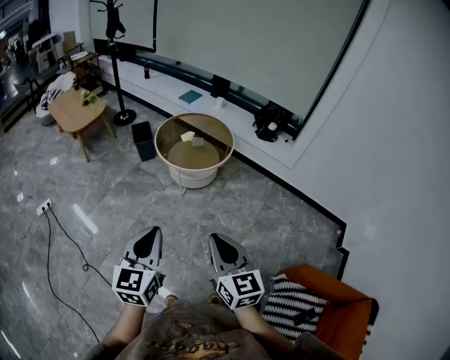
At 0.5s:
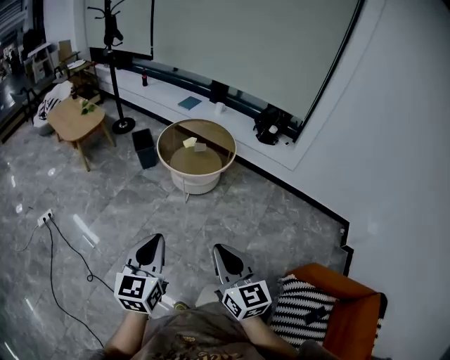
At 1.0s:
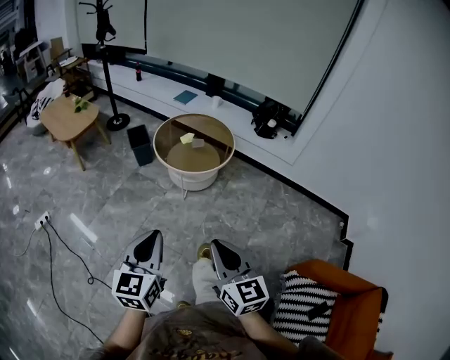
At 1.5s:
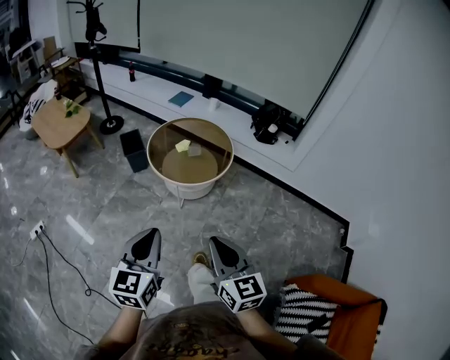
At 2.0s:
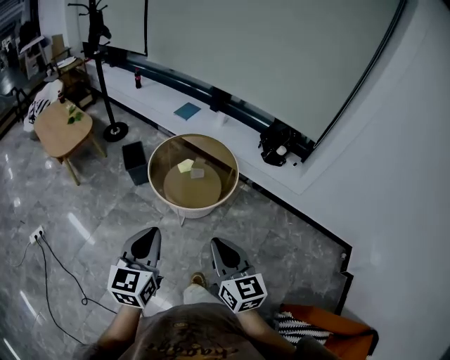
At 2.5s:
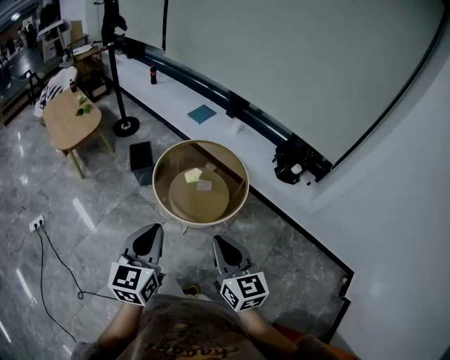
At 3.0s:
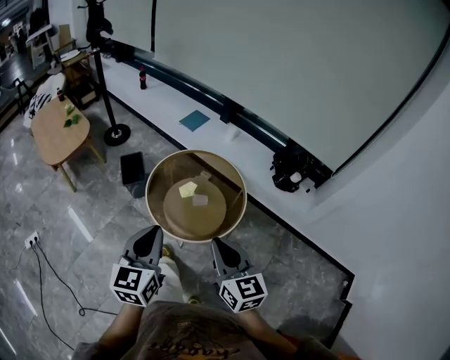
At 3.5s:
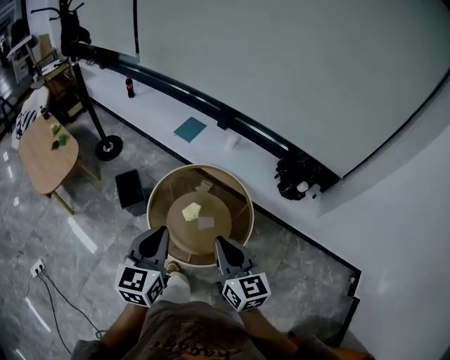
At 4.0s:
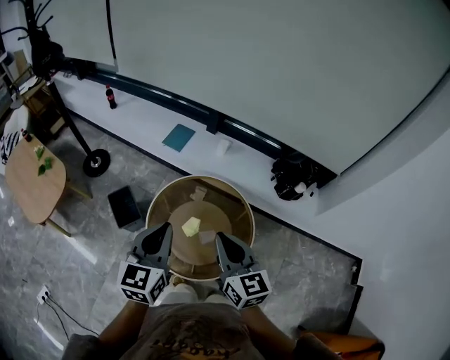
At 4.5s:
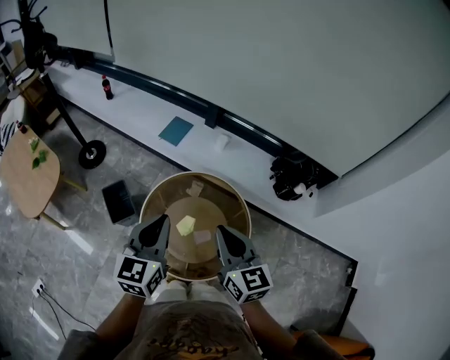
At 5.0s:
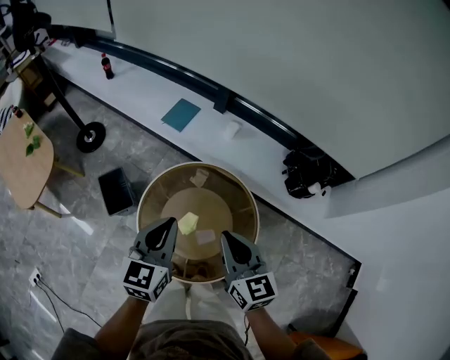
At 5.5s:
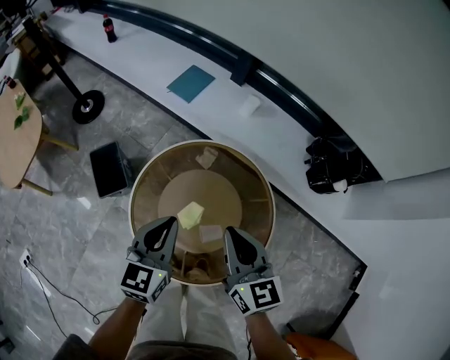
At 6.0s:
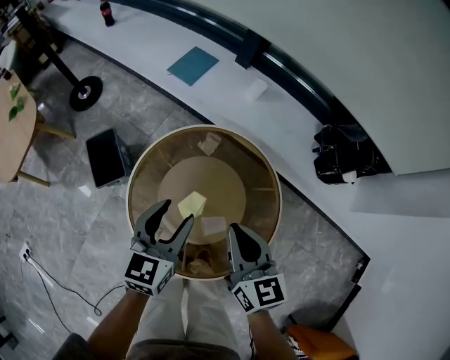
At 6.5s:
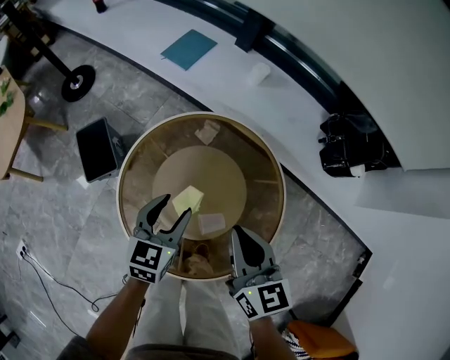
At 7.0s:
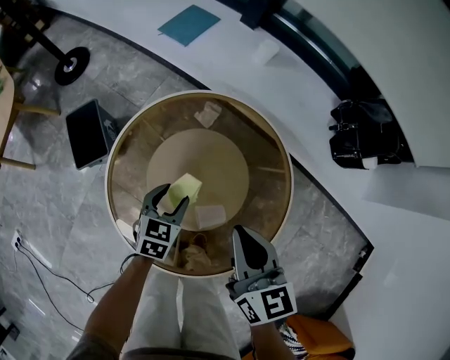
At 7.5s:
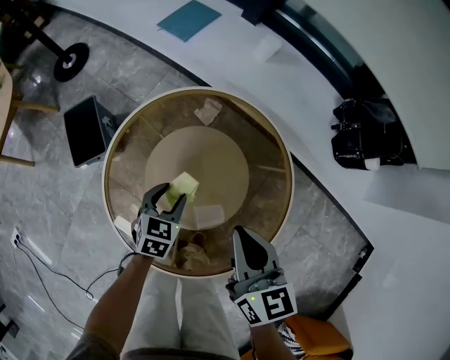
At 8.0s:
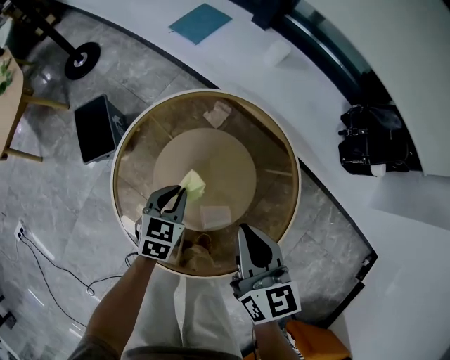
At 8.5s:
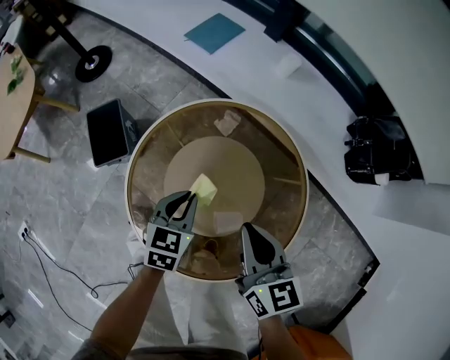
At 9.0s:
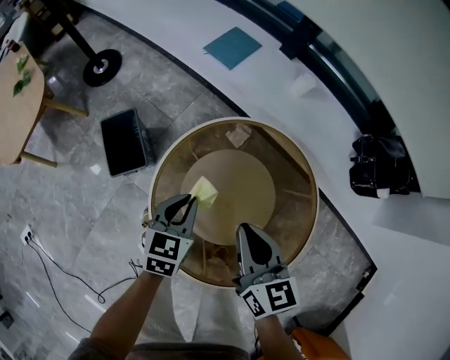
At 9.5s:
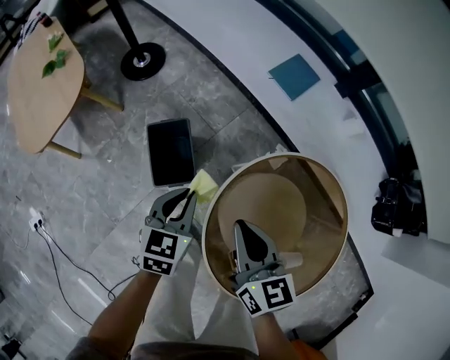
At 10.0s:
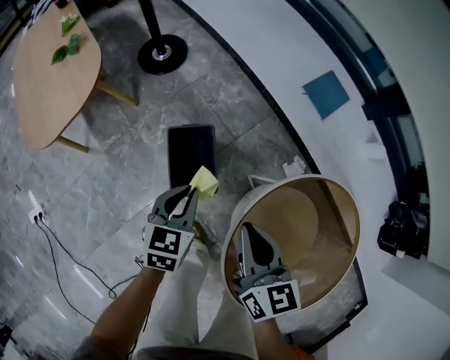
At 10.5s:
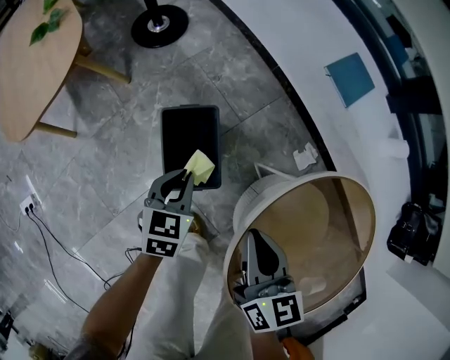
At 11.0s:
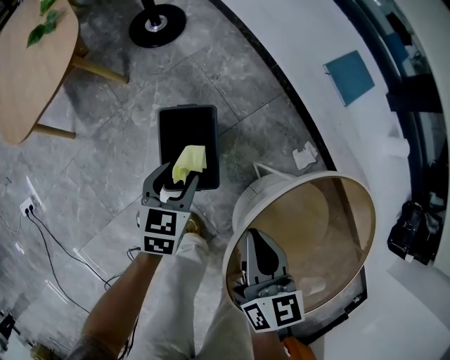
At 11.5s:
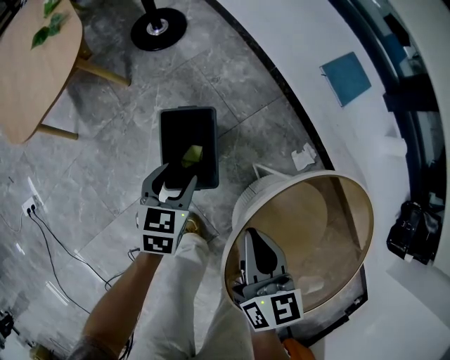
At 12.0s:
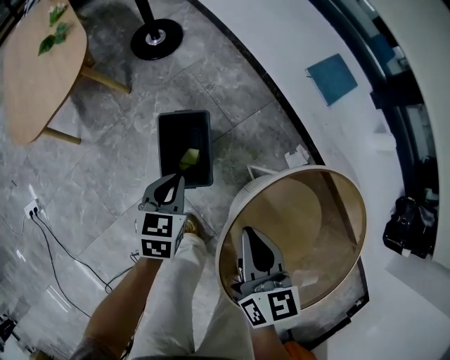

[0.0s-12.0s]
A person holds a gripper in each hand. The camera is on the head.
0.0s to 2.0s: The two grippers go roughly 30 cm forward.
2.0s to 4.0s: The pair of grippers is taken forward, some 50 cm.
4.0s to 6.0s: The two grippers go about 30 cm downward and forward. The left gripper opens its fingers.
6.0s to 8.0s: The right gripper moves downward, roughly 10 cm. Meanwhile the left gripper shifts some 25 cm downward, turns by about 20 degrees, and closes up.
8.0s to 10.0s: Both grippers are carried to the left, some 40 cm.
10.0s to 12.0s: The left gripper goes about 5 cm downward, and opens, then closes once more.

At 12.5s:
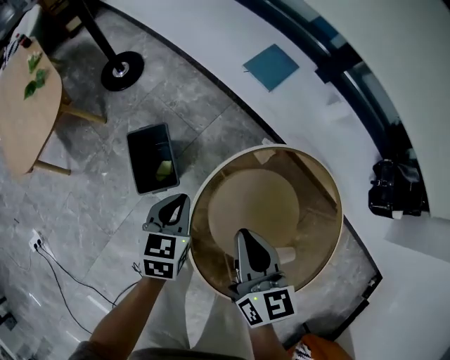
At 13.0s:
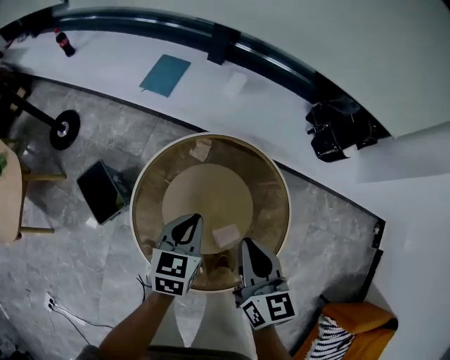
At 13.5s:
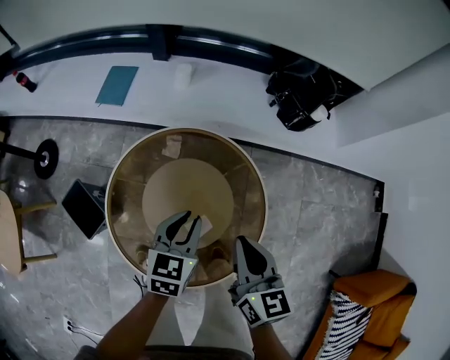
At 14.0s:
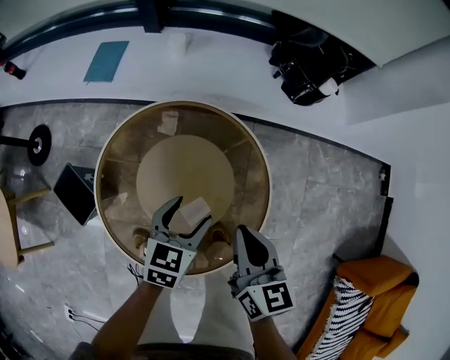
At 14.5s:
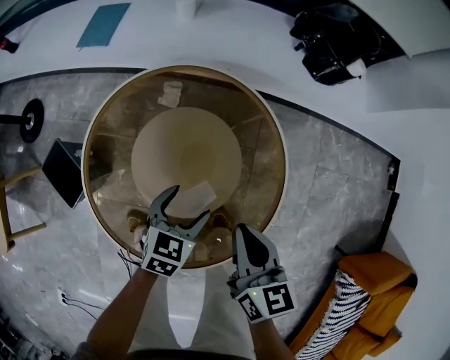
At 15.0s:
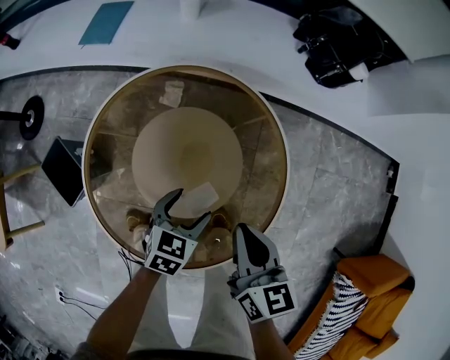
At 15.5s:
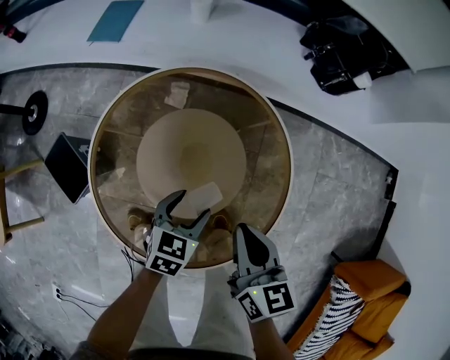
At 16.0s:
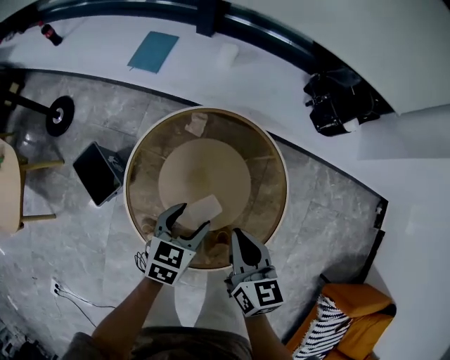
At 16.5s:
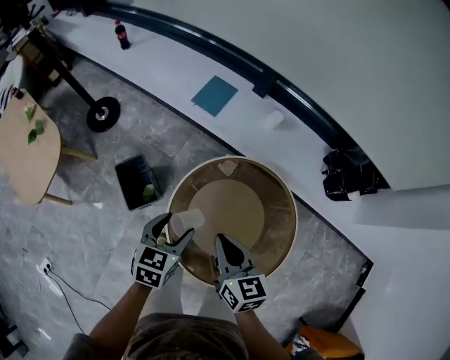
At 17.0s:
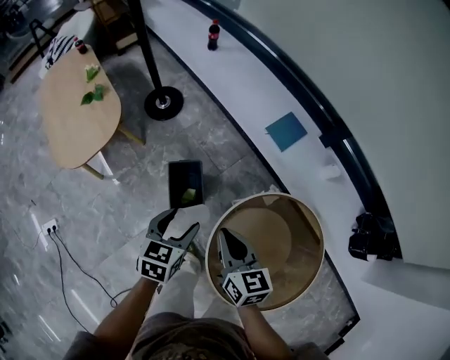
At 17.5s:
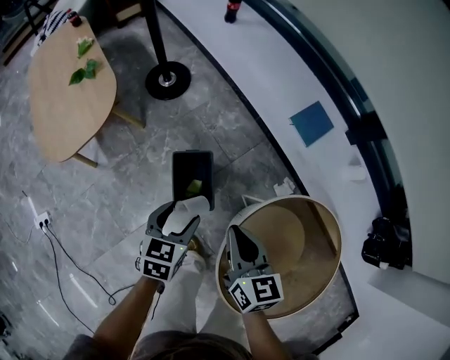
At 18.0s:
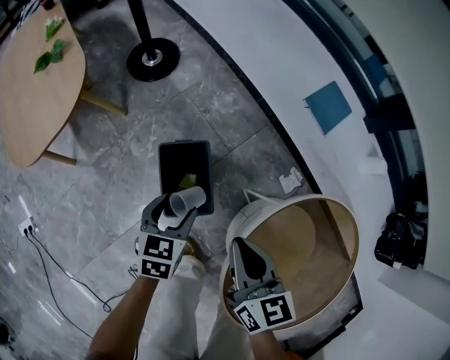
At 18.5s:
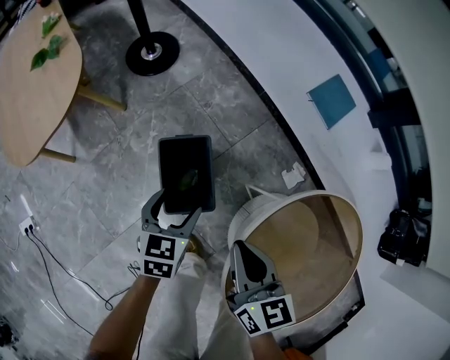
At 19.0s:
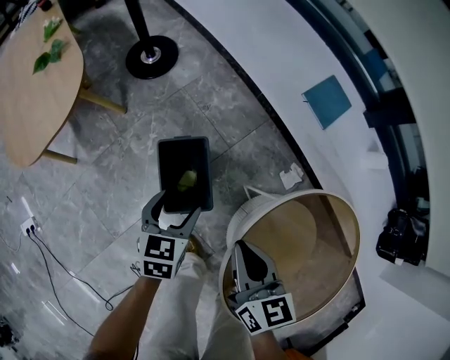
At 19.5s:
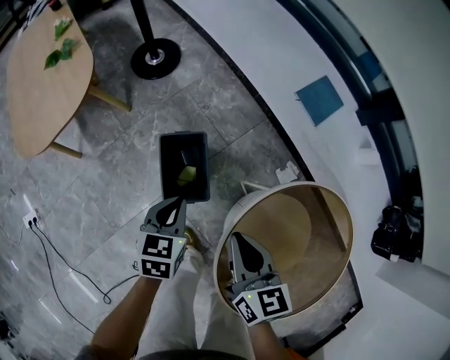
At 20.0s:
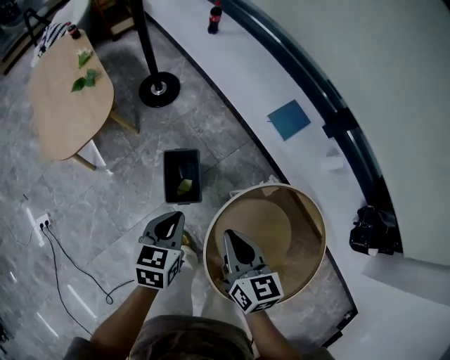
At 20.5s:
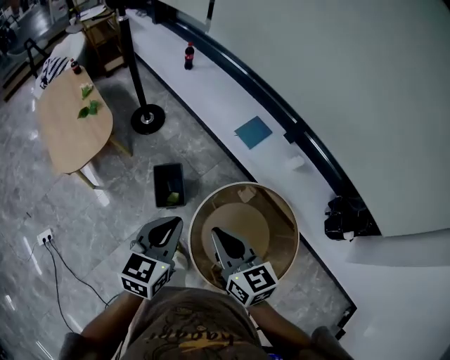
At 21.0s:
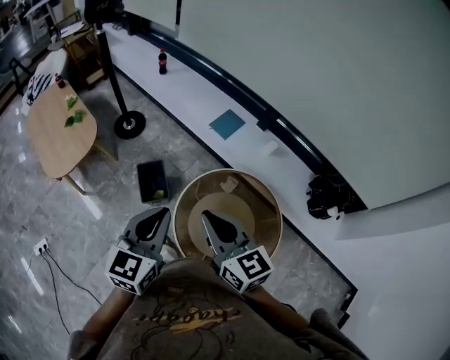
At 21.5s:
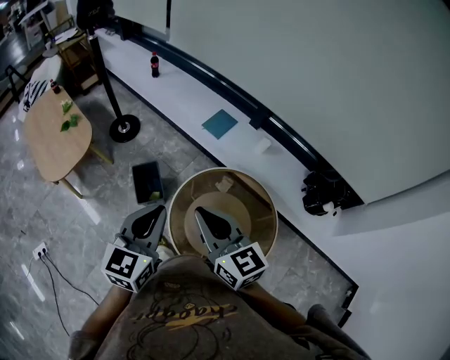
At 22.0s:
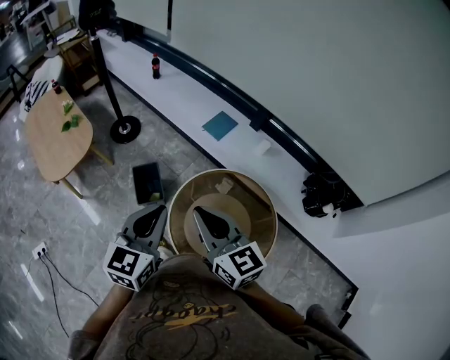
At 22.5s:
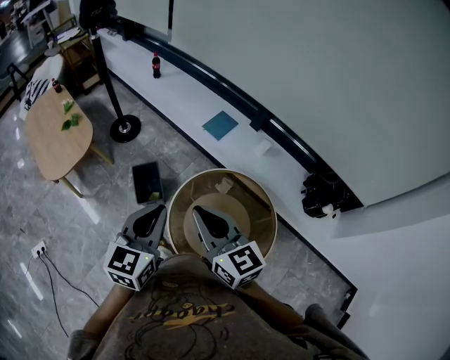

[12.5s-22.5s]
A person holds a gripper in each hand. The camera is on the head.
12.5s to 14.5s: The right gripper ends up roughly 35 cm from where it was, and swivels roughly 30 degrees, while the left gripper ends up some 40 cm from where it was, changes its angle by approximately 50 degrees, and opens its fingers.
14.5s to 16.5s: The left gripper shifts by some 35 cm, and turns by approximately 30 degrees. The right gripper ends up some 30 cm from where it was, and changes its angle by approximately 30 degrees.
16.5s to 18.5s: The left gripper travels downward, to the left and forward by approximately 40 cm, and turns by some 20 degrees. Meanwhile the right gripper shifts some 30 cm to the left, downward and forward.
18.5s to 20.5s: Both grippers travel together upward and backward, roughly 40 cm. The left gripper rotates approximately 20 degrees, and closes.
20.5s to 22.5s: The left gripper moves backward, to the right and upward, approximately 10 cm. Meanwhile the right gripper heads upward, backward and to the right, covering approximately 10 cm.

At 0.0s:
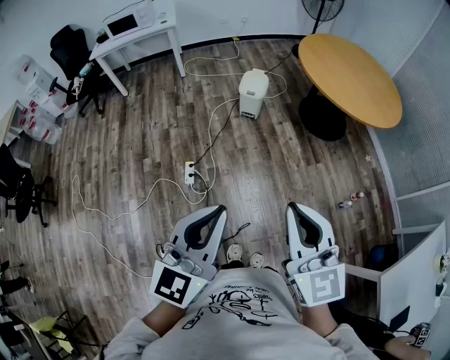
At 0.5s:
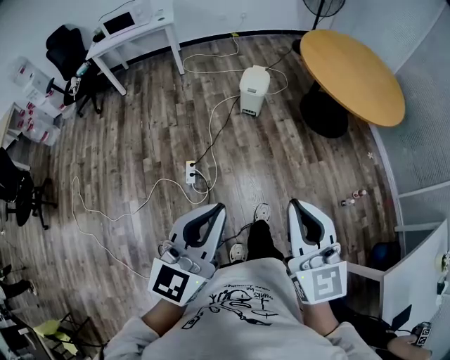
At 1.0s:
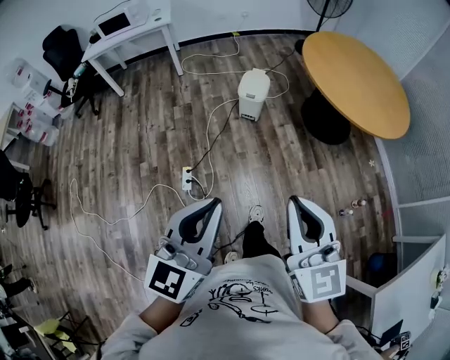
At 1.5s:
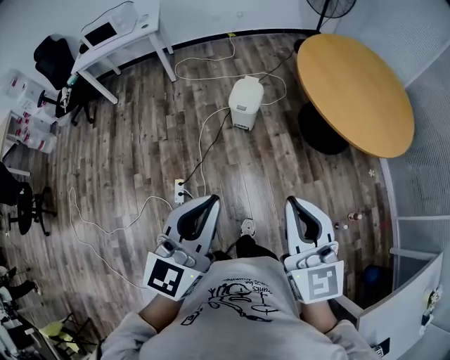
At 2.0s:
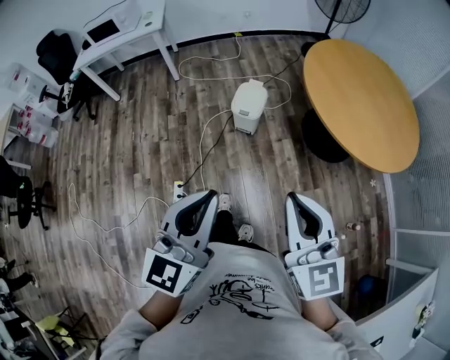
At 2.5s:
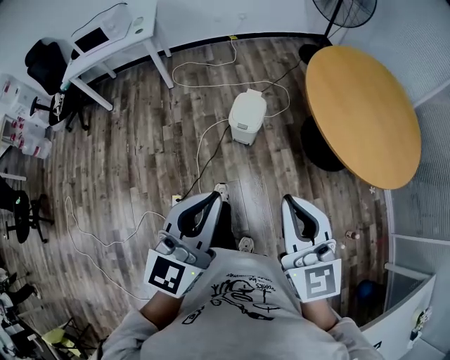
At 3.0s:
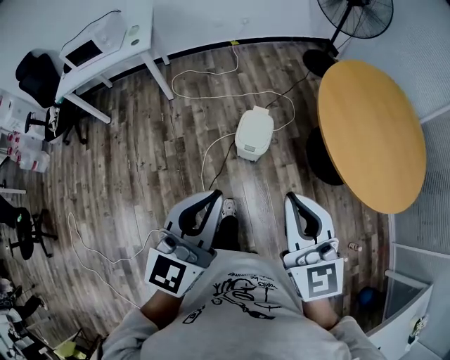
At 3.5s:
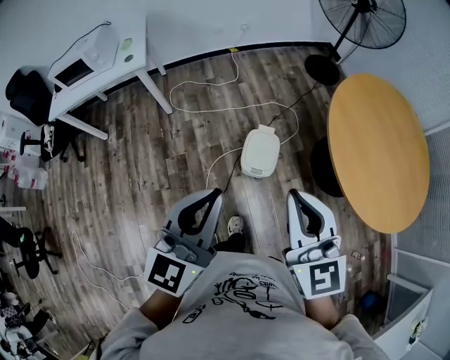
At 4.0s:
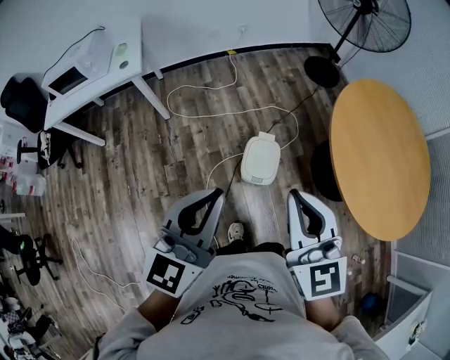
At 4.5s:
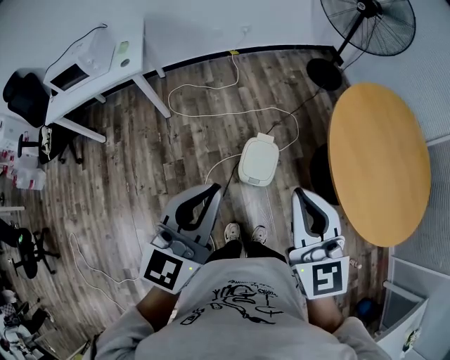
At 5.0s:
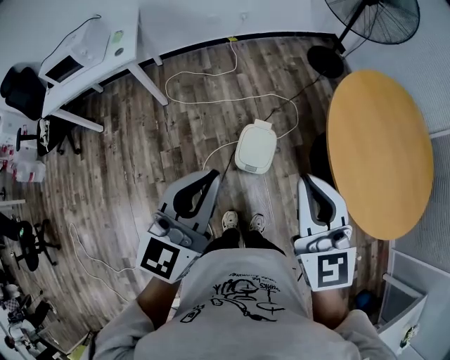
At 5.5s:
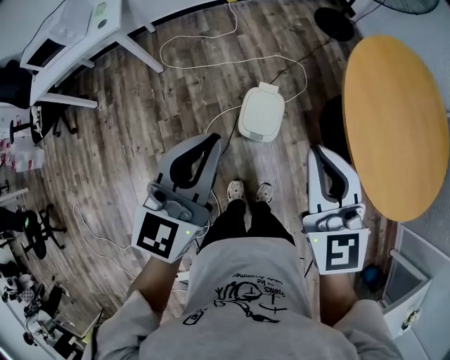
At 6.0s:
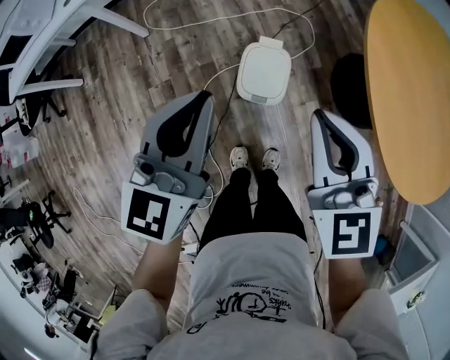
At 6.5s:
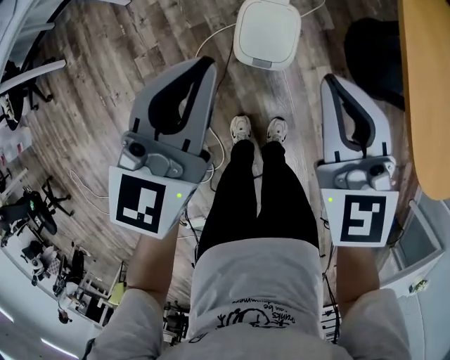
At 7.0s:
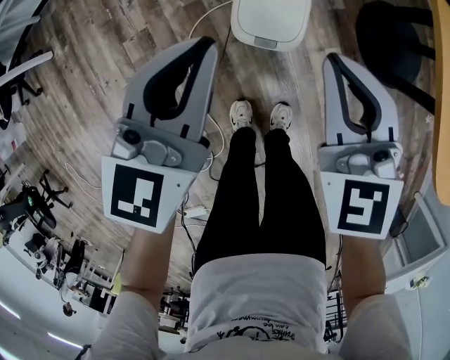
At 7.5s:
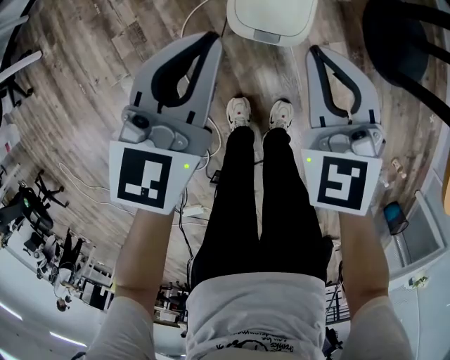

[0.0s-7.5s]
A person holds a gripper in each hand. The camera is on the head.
0.0s to 2.0s: The grippers both shift forward by some 35 cm.
2.0s to 4.0s: The pair of grippers is taken forward, roughly 50 cm.
4.0s to 5.5s: The left gripper heads downward and forward, covering approximately 10 cm. Meanwhile the right gripper is displaced downward, to the right and forward by roughly 10 cm.
5.5s to 7.5s: The grippers both shift downward by approximately 40 cm. The right gripper changes its angle by approximately 20 degrees.
